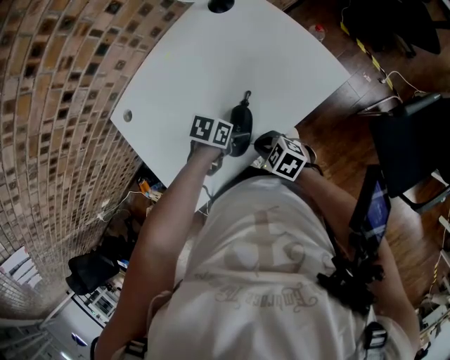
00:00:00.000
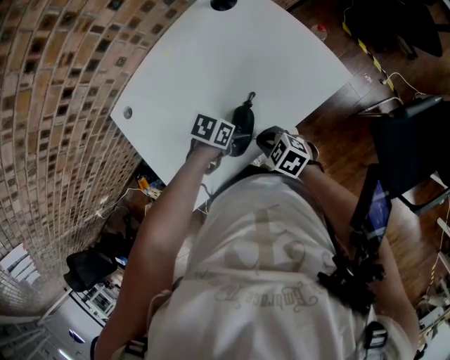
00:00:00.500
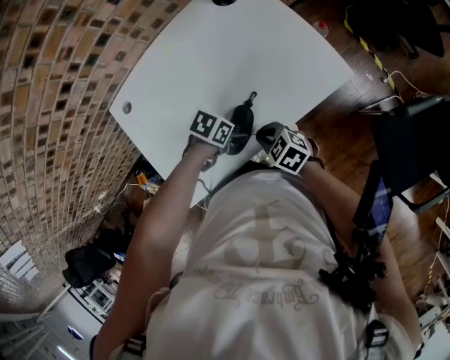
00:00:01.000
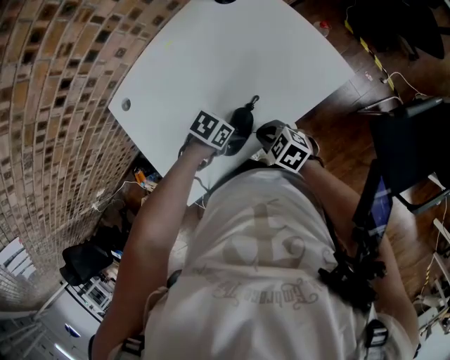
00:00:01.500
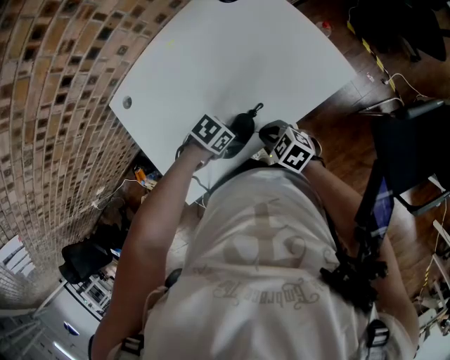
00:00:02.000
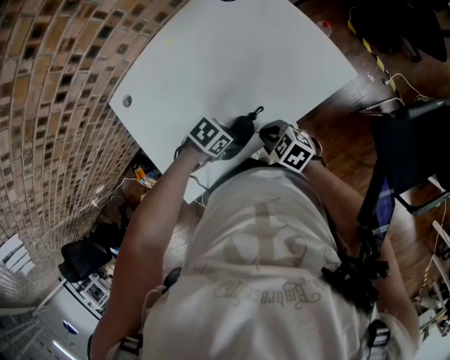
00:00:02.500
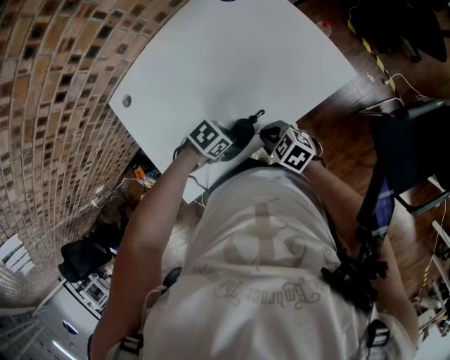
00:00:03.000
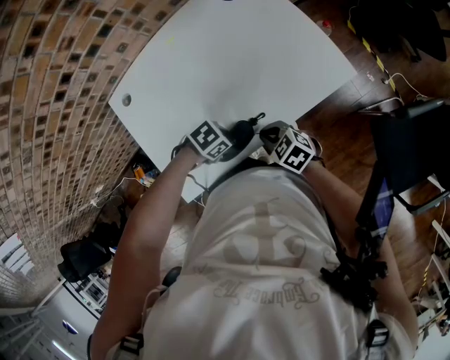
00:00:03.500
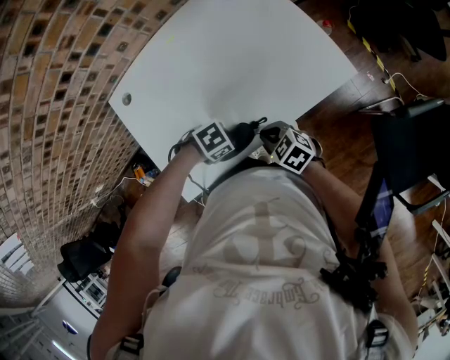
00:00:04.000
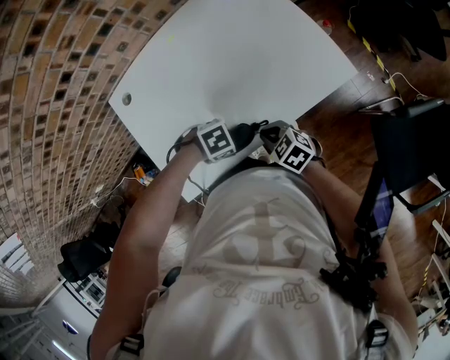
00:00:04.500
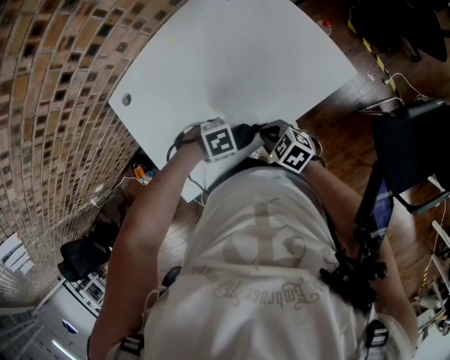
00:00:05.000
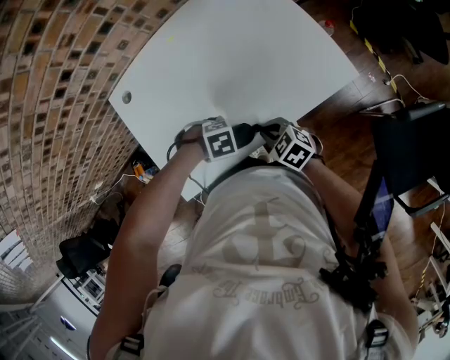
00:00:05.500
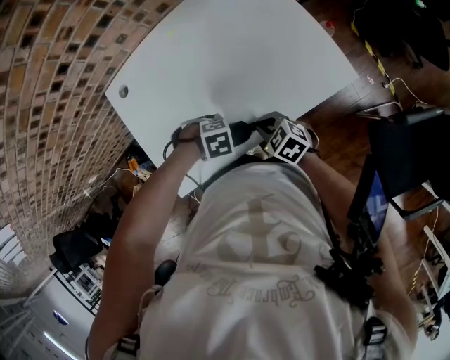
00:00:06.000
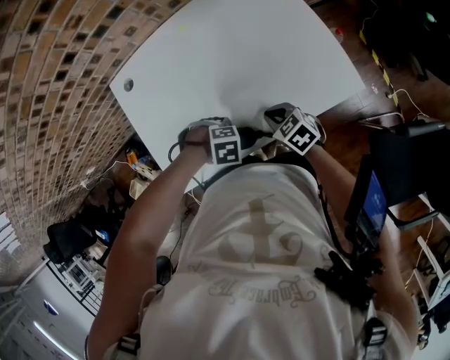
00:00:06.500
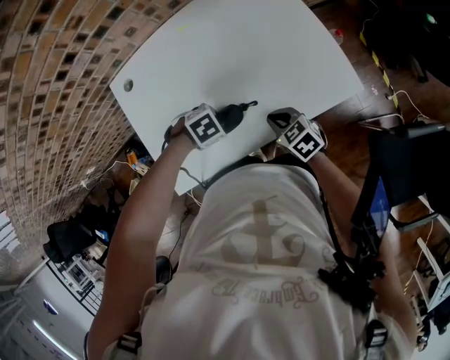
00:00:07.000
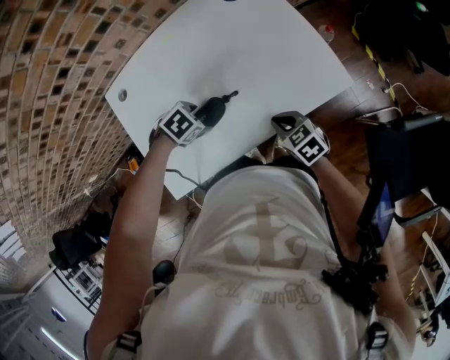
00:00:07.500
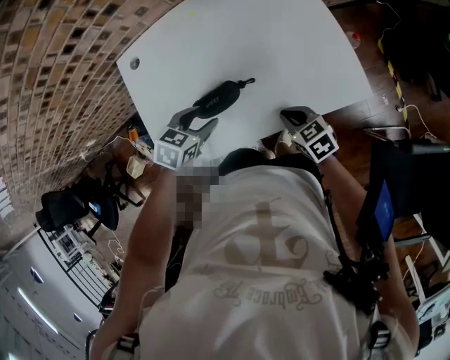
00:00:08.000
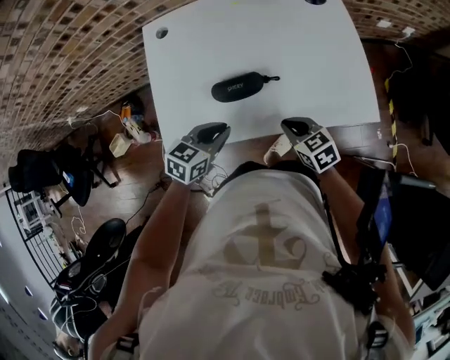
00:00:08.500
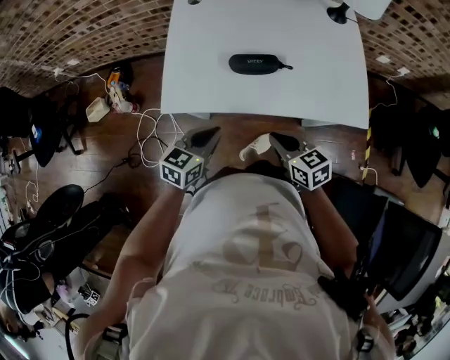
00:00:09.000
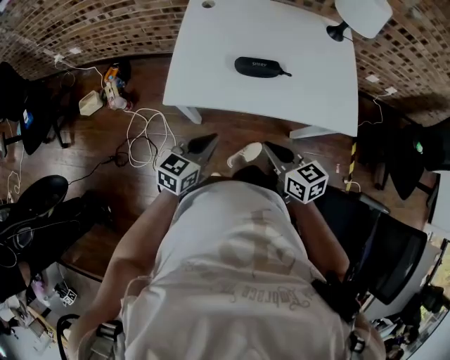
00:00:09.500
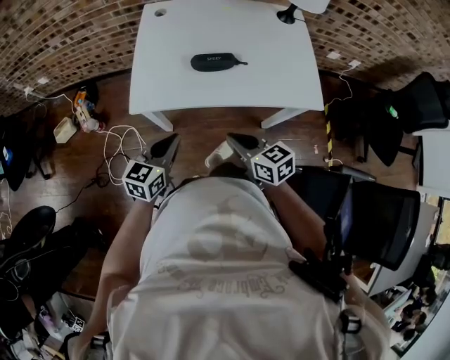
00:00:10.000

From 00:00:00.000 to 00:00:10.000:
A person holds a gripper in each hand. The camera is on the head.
From 00:00:06.000 to 00:00:08.000: The right gripper moves some 10 cm.
From 00:00:08.000 to 00:00:10.000: The right gripper ends up approximately 25 cm from where it was.

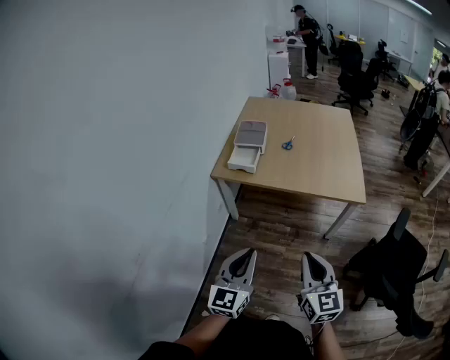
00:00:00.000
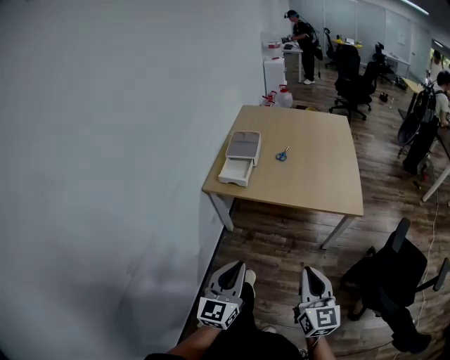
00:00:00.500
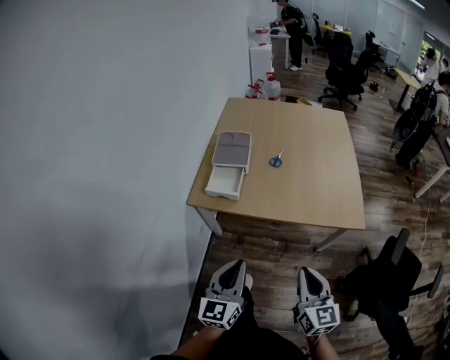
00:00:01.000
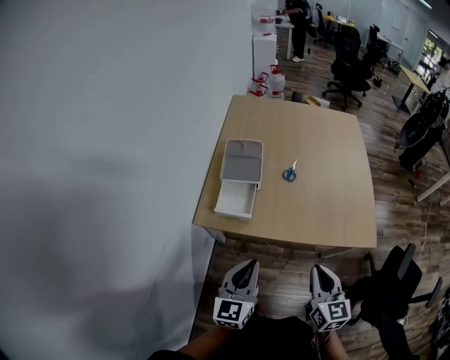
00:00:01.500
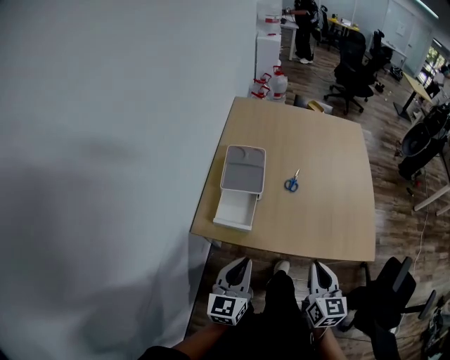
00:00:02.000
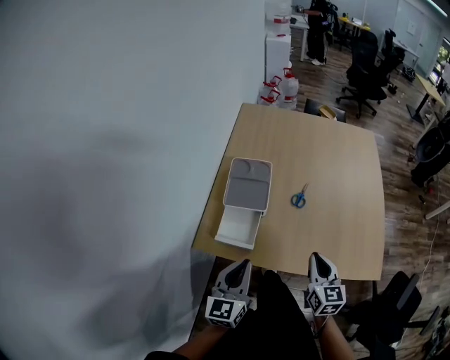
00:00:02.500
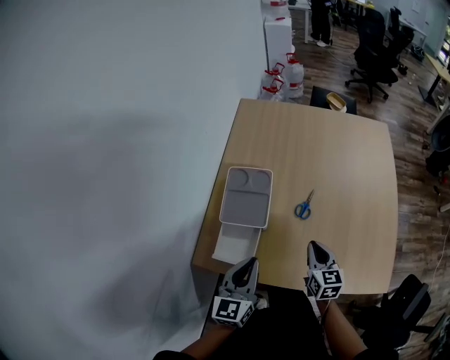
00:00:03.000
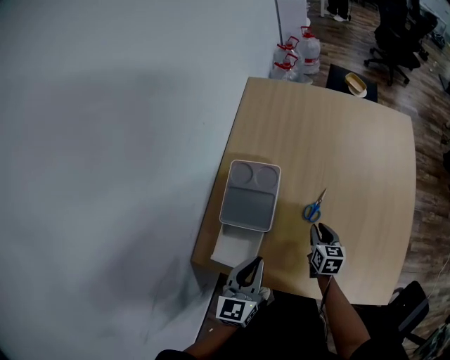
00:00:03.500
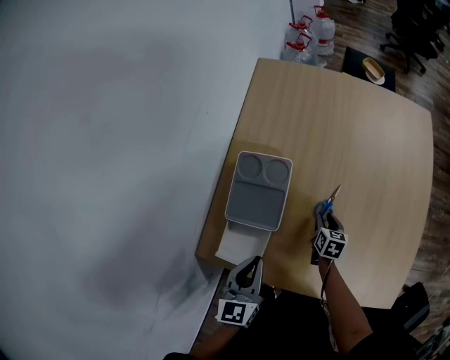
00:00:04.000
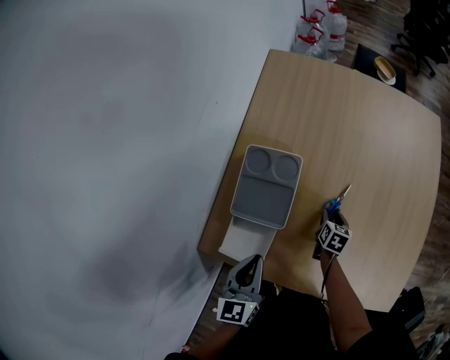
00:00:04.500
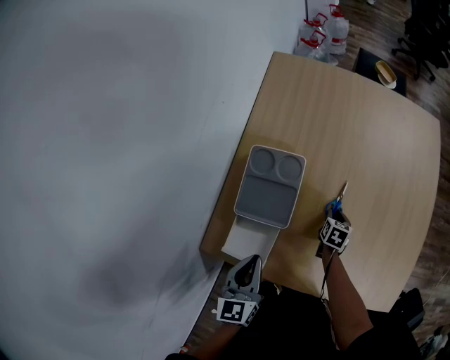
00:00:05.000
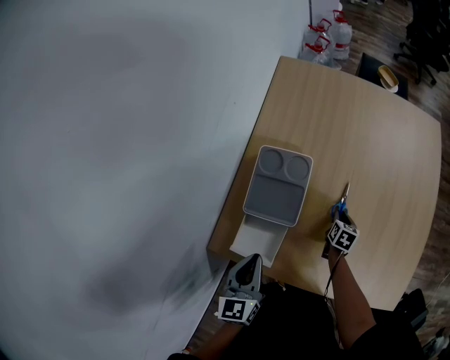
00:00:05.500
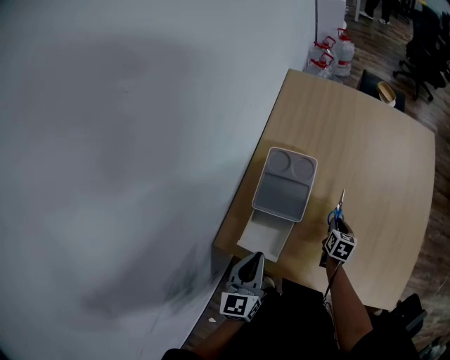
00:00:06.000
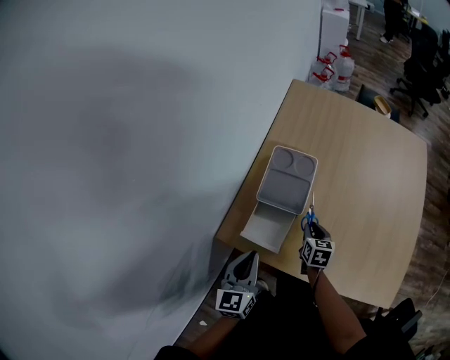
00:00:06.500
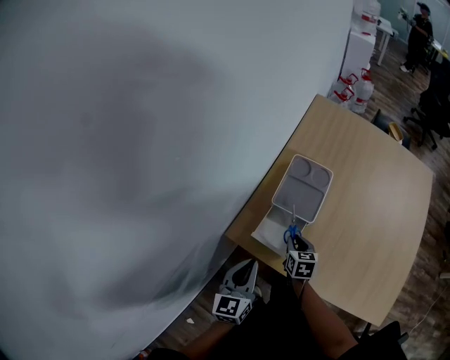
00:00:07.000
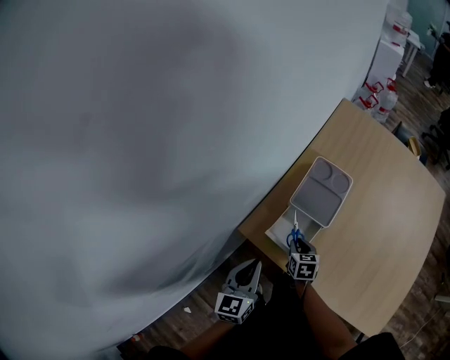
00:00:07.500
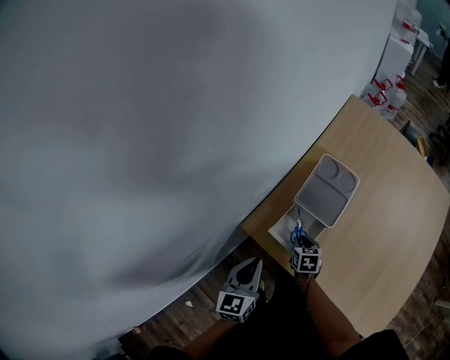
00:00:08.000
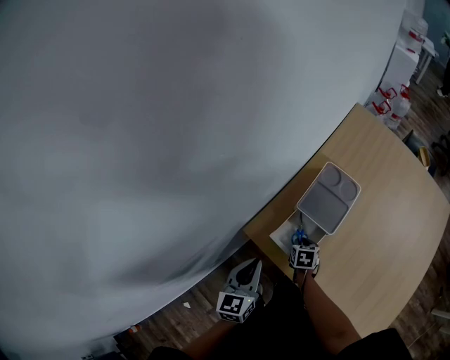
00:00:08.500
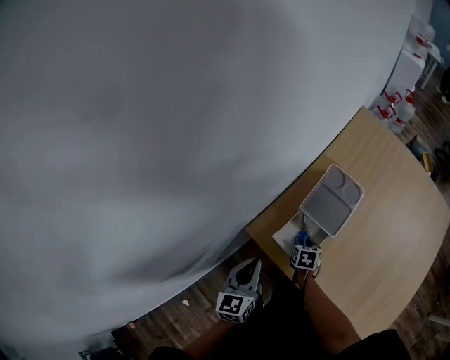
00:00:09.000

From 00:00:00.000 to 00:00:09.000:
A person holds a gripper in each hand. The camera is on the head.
From 00:00:00.000 to 00:00:02.000: The pair of grippers is taken forward, some 40 cm.
From 00:00:02.000 to 00:00:04.500: The right gripper travels forward and downward by approximately 50 cm, angles its fingers downward, by some 30 degrees, and opens. The left gripper moves forward, some 25 cm, and changes its angle by approximately 20 degrees.
From 00:00:04.500 to 00:00:07.000: The right gripper is displaced to the left, backward and upward by approximately 30 cm, turns by approximately 30 degrees, and closes up. Meanwhile the left gripper heads backward and to the left, covering approximately 20 cm.
From 00:00:07.000 to 00:00:09.000: The right gripper moves downward, some 10 cm. Meanwhile the left gripper shifts approximately 5 cm to the left.

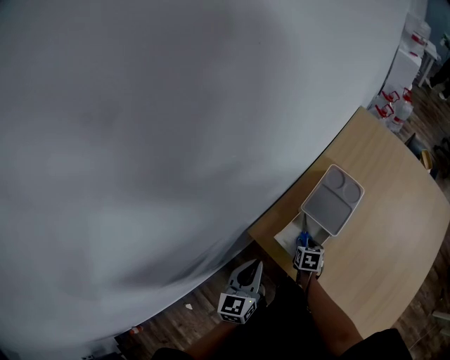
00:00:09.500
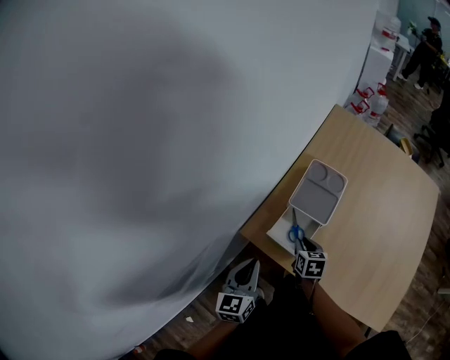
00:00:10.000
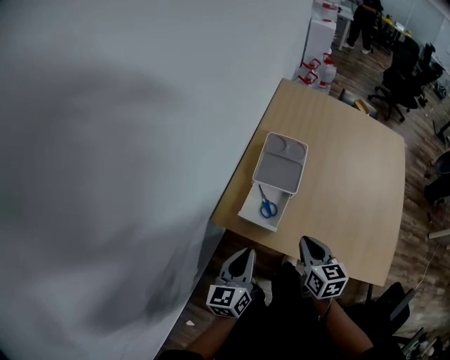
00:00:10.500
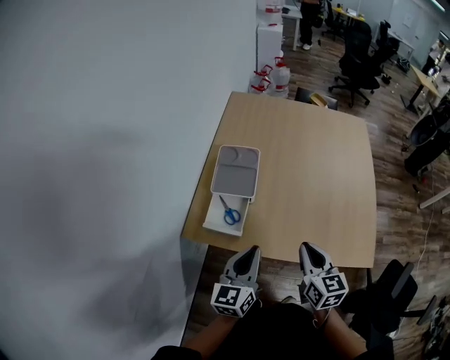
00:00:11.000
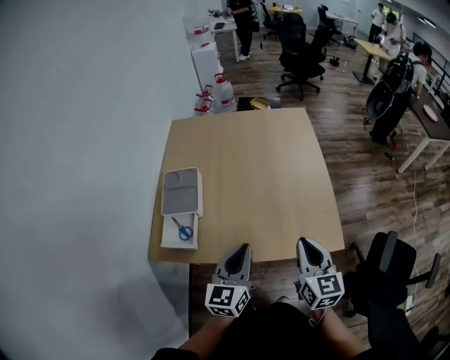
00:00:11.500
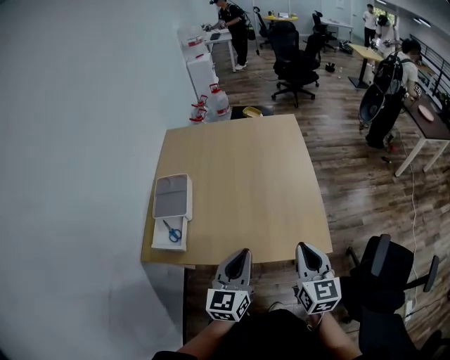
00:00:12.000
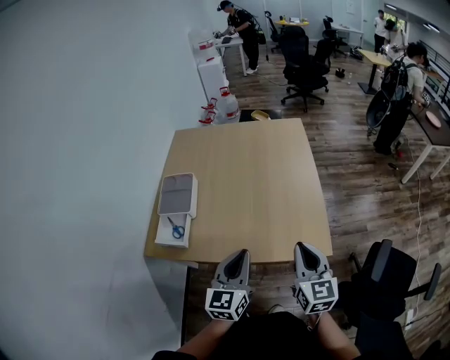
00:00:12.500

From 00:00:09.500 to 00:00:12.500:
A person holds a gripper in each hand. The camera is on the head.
From 00:00:09.500 to 00:00:11.000: The left gripper changes place by approximately 25 cm, and turns by approximately 30 degrees; the right gripper goes some 30 cm upward, tilts its fingers about 40 degrees upward, and closes its fingers.
From 00:00:11.000 to 00:00:12.500: The two grippers go some 25 cm to the right.

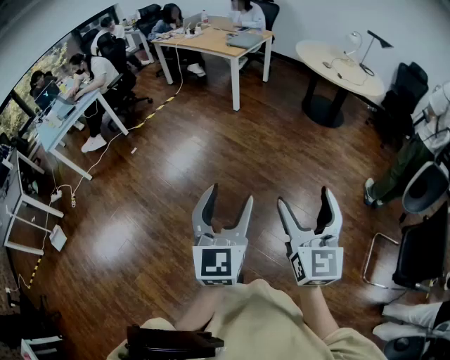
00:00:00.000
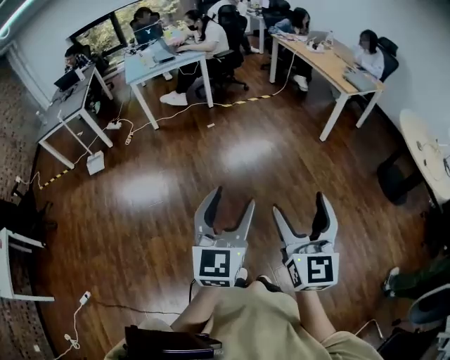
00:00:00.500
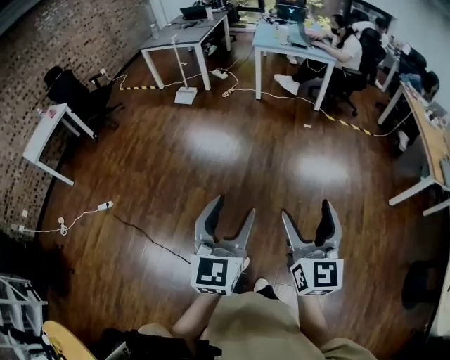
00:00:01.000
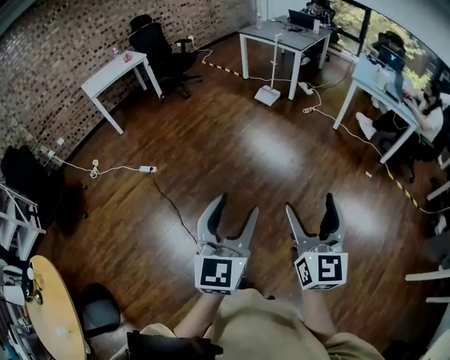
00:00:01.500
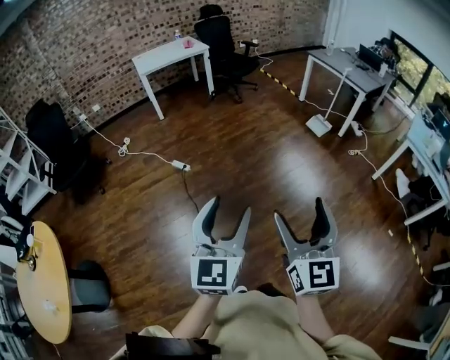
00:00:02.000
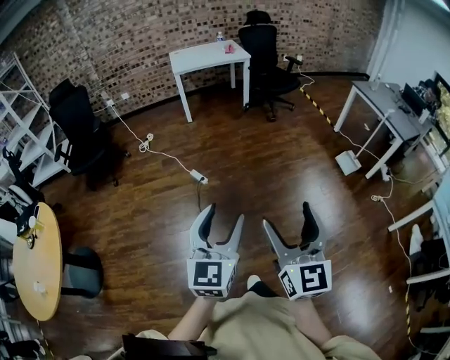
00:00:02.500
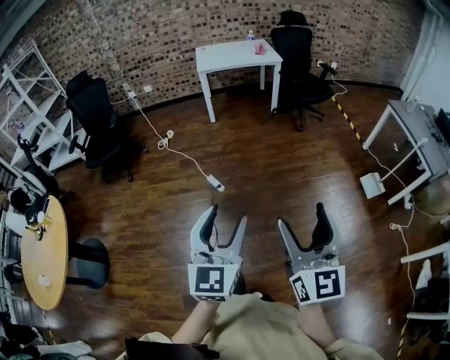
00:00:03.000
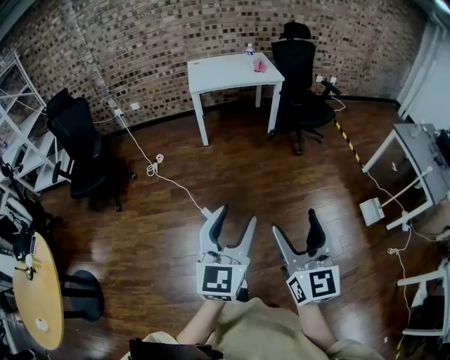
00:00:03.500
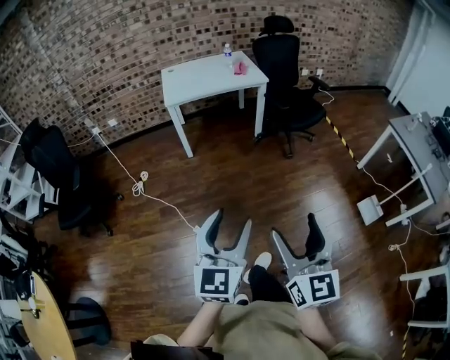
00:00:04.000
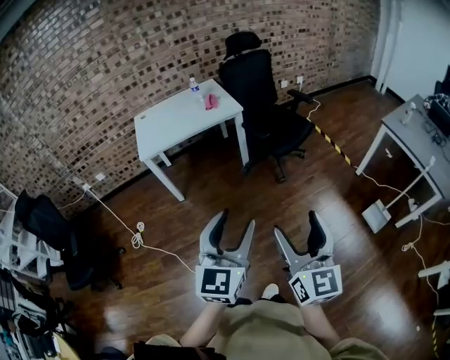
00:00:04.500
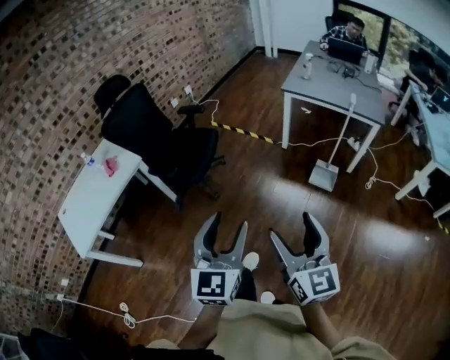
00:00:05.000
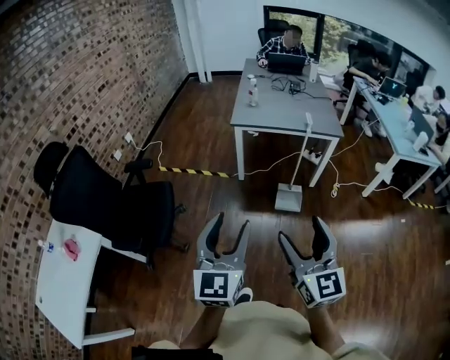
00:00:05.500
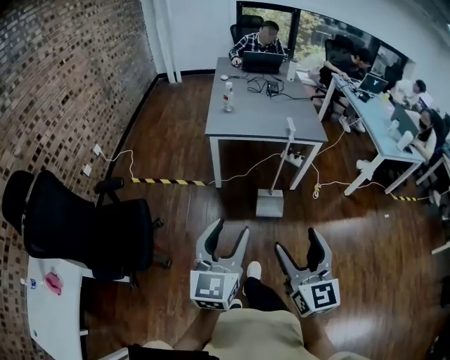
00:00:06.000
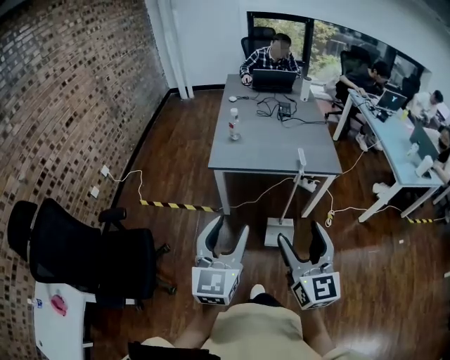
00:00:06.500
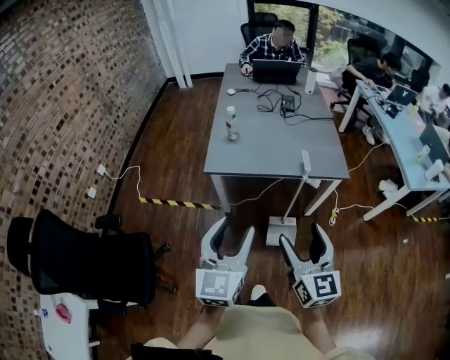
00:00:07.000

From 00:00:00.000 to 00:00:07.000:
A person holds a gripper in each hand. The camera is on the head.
From 00:00:00.000 to 00:00:02.000: The two grippers travel together, some 80 cm. The right gripper turns by approximately 110 degrees; the left gripper rotates roughly 100 degrees.
From 00:00:02.000 to 00:00:03.500: The two grippers travel together, forward, approximately 60 cm. The right gripper rotates about 20 degrees.
From 00:00:03.500 to 00:00:05.000: The pair of grippers is taken roughly 50 cm. The left gripper rotates roughly 50 degrees. Meanwhile the right gripper turns by roughly 50 degrees.
From 00:00:05.000 to 00:00:07.000: The two grippers travel together, roughly 60 cm. The left gripper swivels roughly 30 degrees; the right gripper turns by about 30 degrees.
